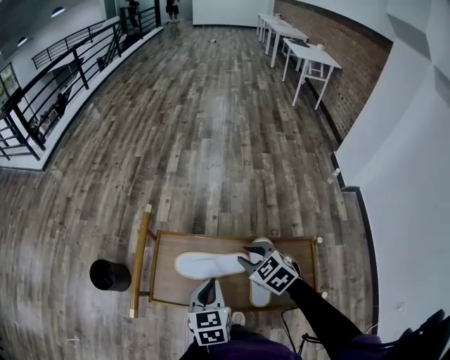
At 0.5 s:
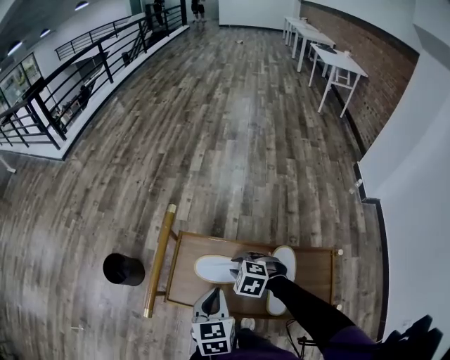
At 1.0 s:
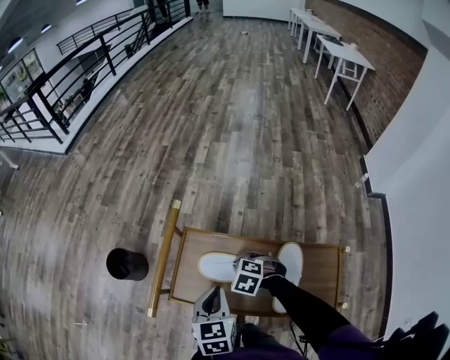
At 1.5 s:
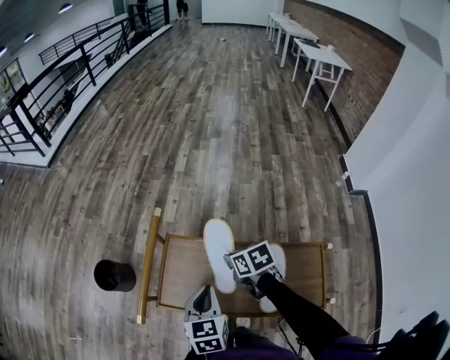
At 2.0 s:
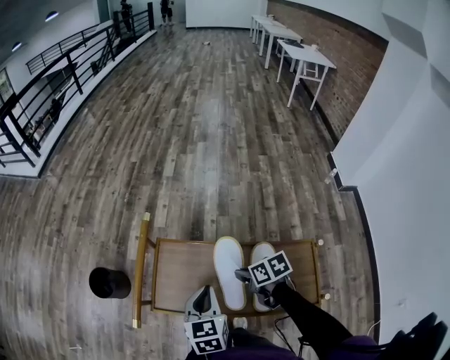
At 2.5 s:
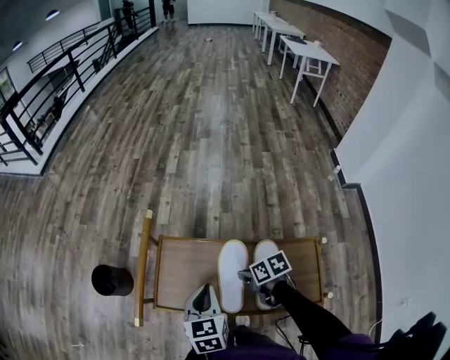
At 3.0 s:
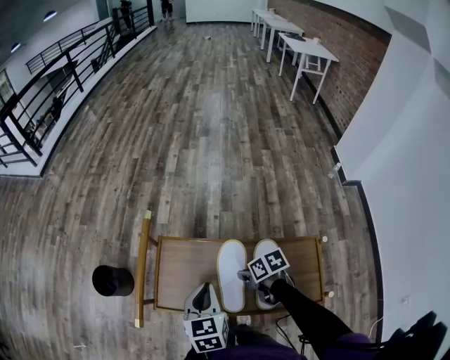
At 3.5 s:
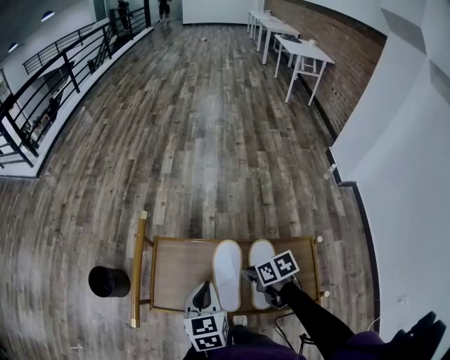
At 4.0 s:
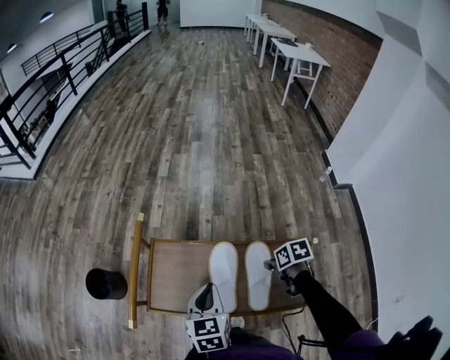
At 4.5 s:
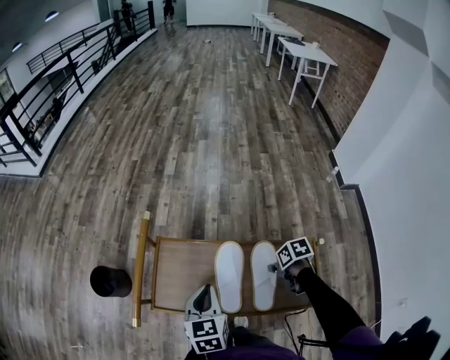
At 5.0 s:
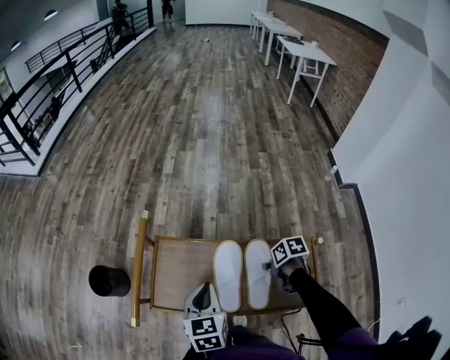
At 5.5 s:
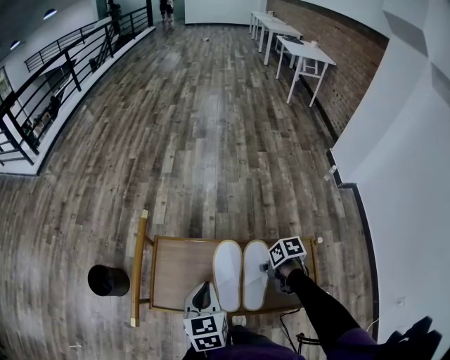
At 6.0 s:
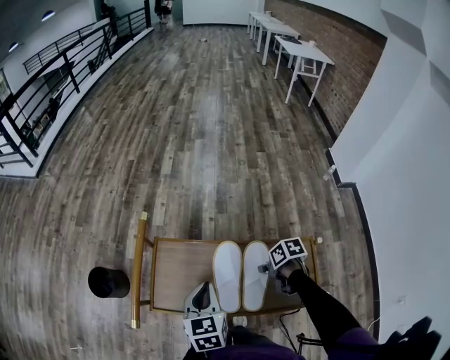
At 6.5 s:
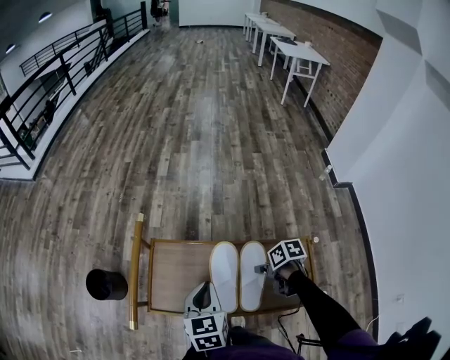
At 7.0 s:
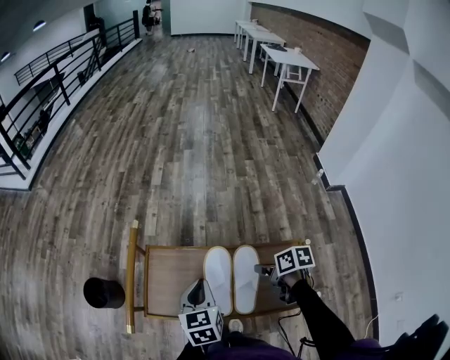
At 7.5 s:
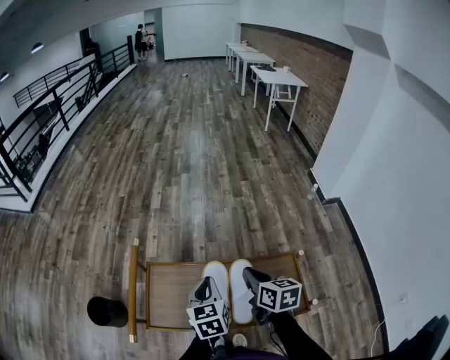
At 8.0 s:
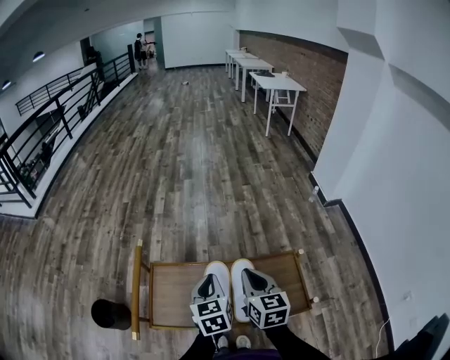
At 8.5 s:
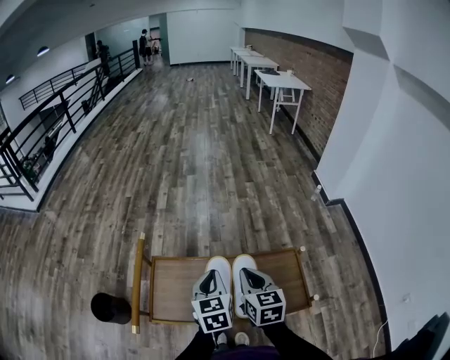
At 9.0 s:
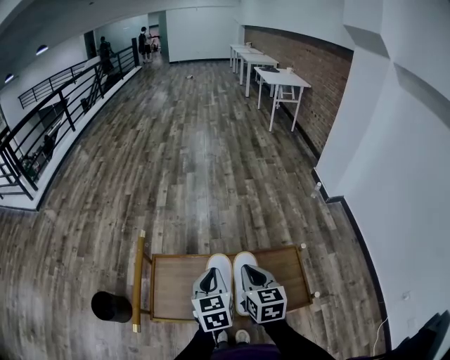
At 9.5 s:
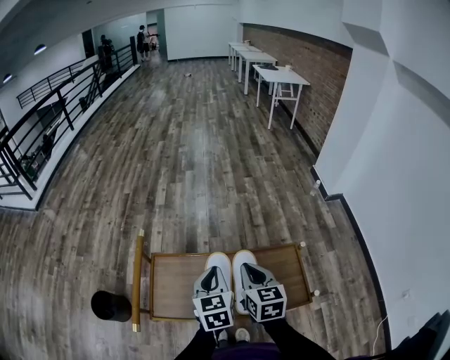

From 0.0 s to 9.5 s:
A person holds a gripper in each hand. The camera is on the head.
From 0.0 s to 2.0 s: The right gripper is displaced downward by about 5 cm, and twists some 50 degrees clockwise, seen from behind.
From 2.0 s to 4.0 s: The right gripper shifts about 15 cm to the right and backward, and changes its angle by approximately 20 degrees.
From 4.0 s to 5.5 s: The grippers make only small movements.
From 5.5 s to 7.5 s: The left gripper ends up some 5 cm from where it was; the right gripper moves upward, some 15 cm, and points its fingers some 30 degrees further upward.
From 7.5 s to 9.5 s: The right gripper turns by roughly 20 degrees.

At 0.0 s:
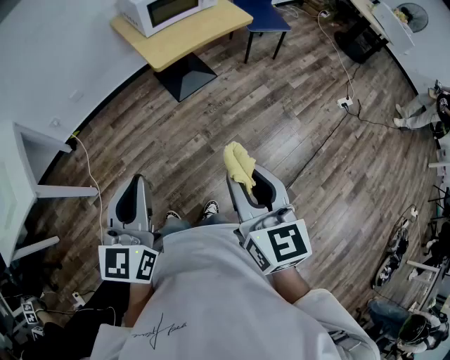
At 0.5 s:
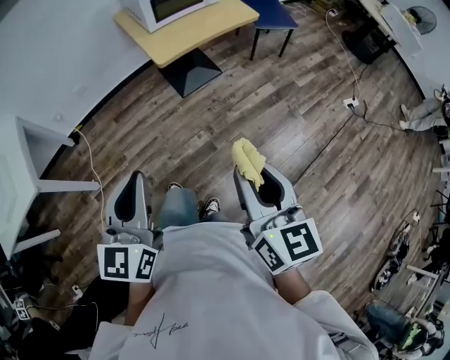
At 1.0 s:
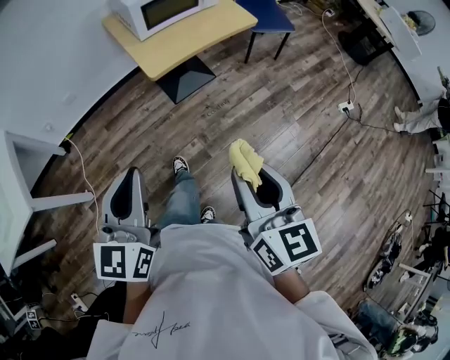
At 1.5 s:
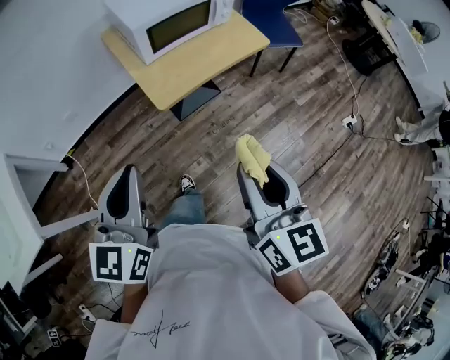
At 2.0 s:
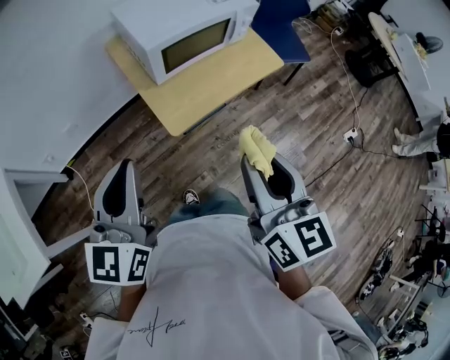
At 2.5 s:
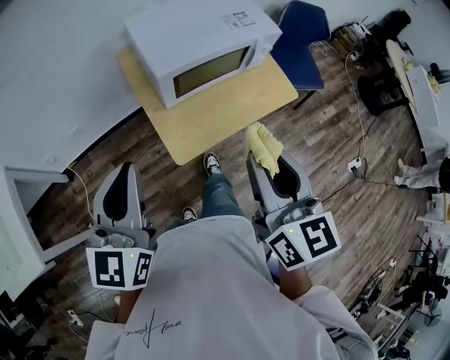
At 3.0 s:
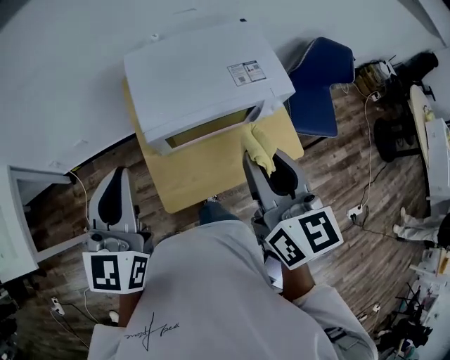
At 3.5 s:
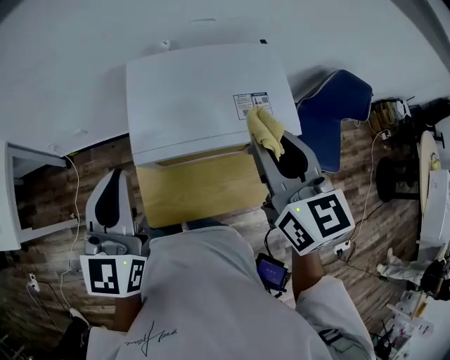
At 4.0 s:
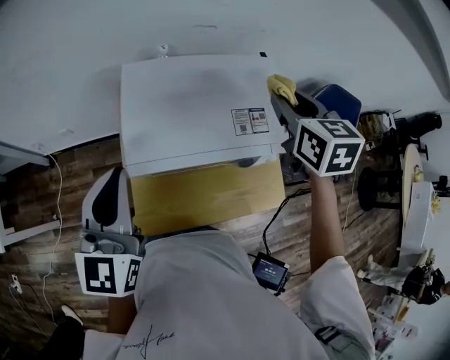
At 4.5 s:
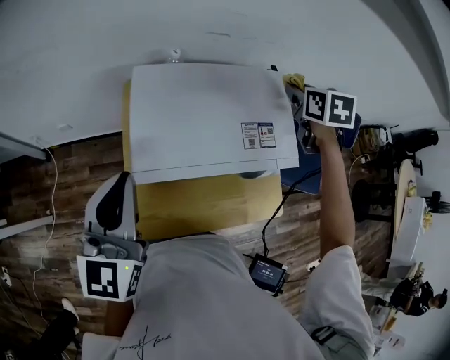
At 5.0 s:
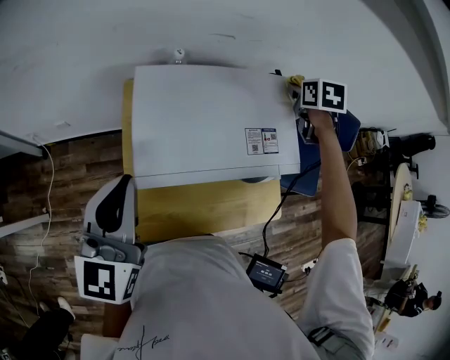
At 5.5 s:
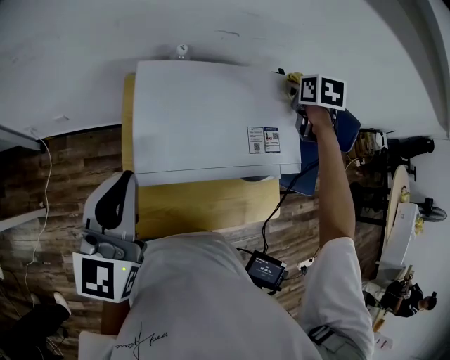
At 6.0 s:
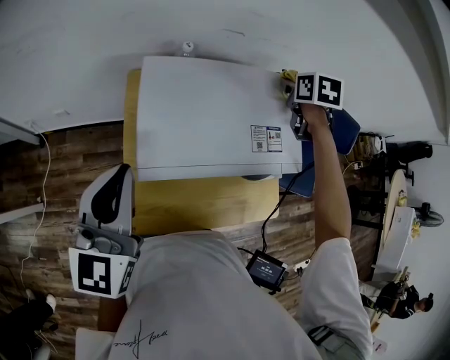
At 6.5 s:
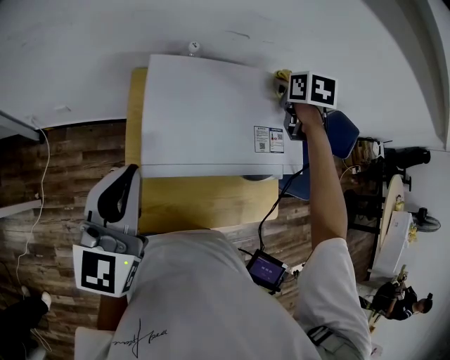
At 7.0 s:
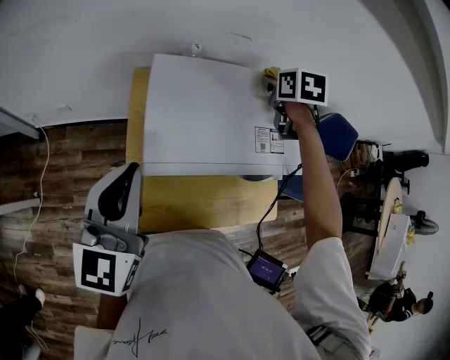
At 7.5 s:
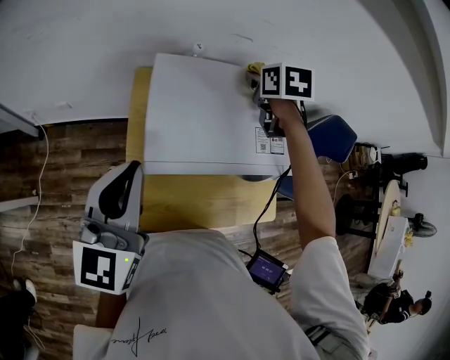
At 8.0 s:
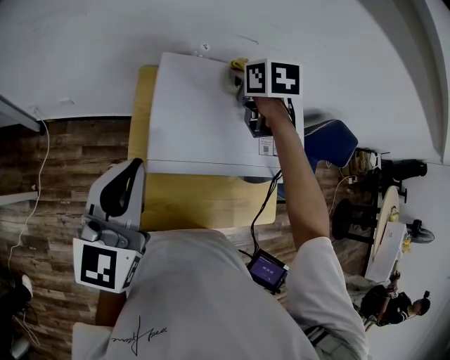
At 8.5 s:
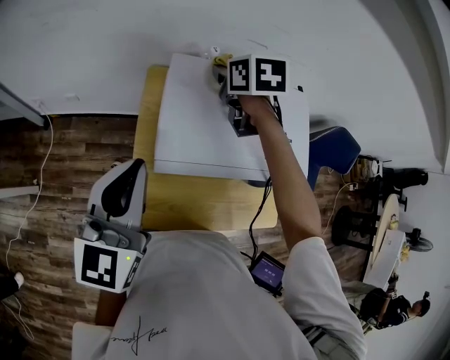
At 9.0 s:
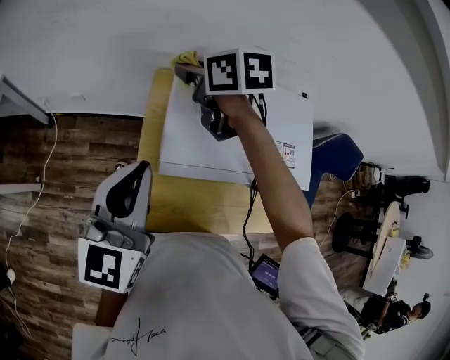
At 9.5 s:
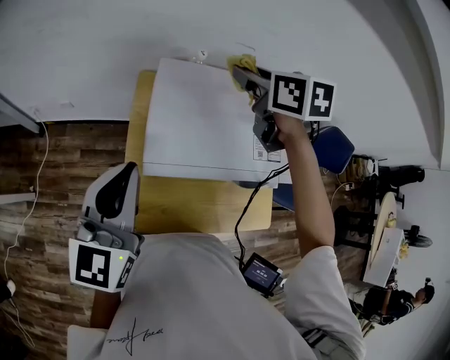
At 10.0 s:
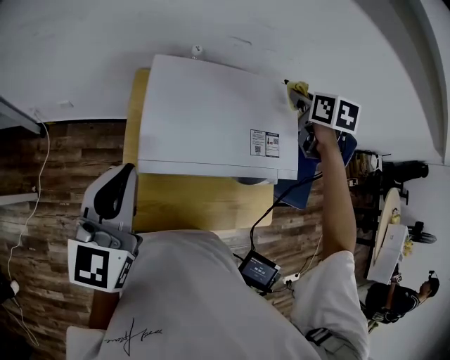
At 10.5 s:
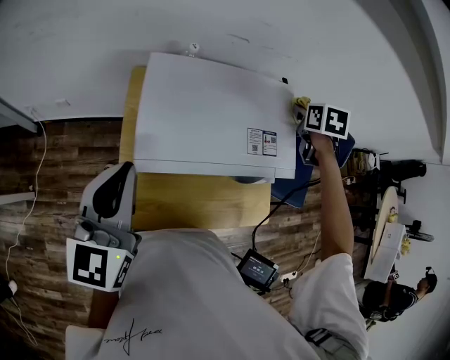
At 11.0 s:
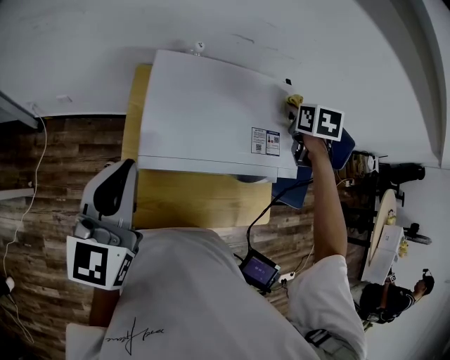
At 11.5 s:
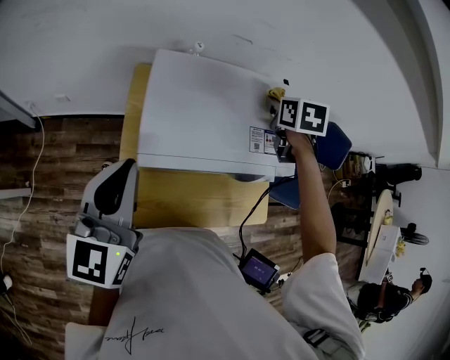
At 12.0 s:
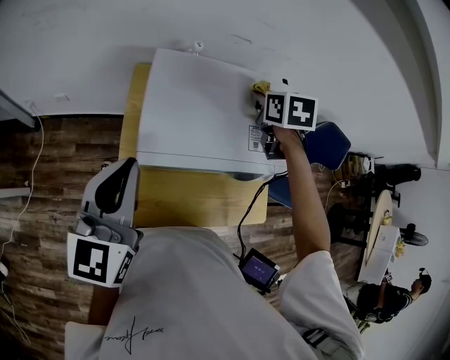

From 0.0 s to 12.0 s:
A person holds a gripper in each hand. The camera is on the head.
From 0.0 s to 2.0 s: The pair of grippers is taken forward, some 40 cm.
From 2.0 s to 4.0 s: The left gripper moves some 35 cm, and rotates approximately 30 degrees. The right gripper changes place by roughly 60 cm, and turns by about 40 degrees.
From 4.0 s to 6.0 s: The right gripper is displaced forward and downward by approximately 15 cm, and swivels some 20 degrees.
From 6.0 s to 8.0 s: The right gripper heads to the left, covering some 20 cm.
From 8.0 s to 10.0 s: The right gripper goes about 20 cm to the right.
From 10.0 s to 12.0 s: The right gripper is displaced to the left by roughly 10 cm.

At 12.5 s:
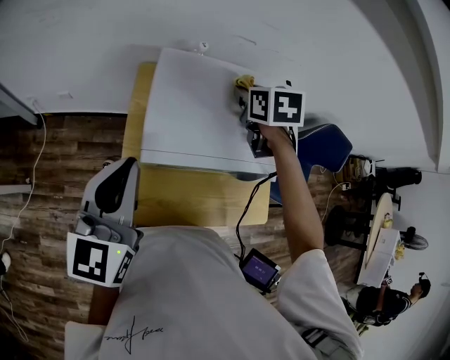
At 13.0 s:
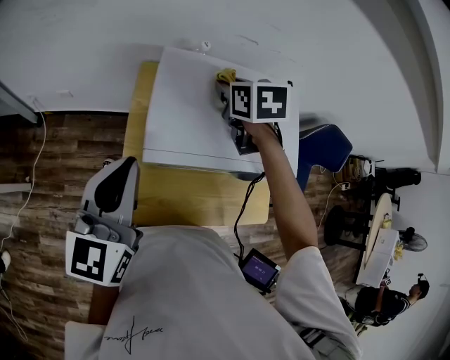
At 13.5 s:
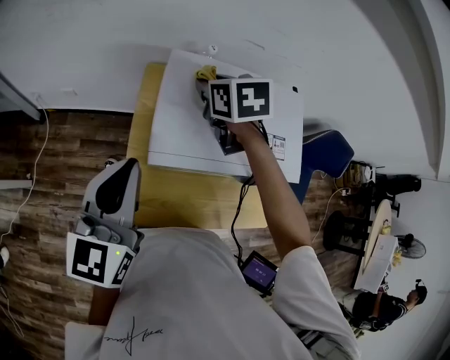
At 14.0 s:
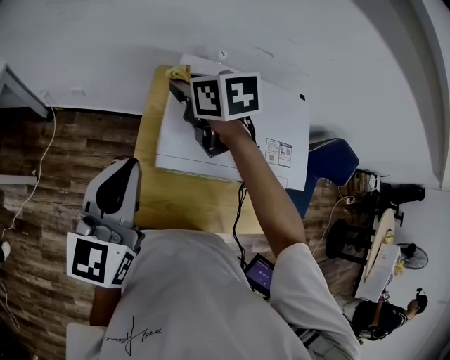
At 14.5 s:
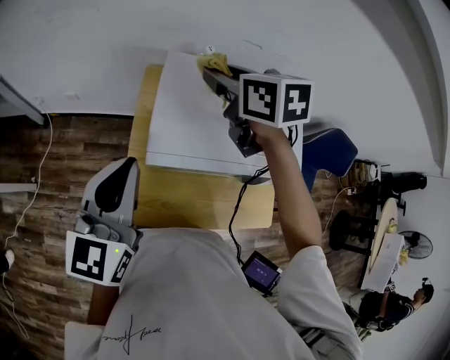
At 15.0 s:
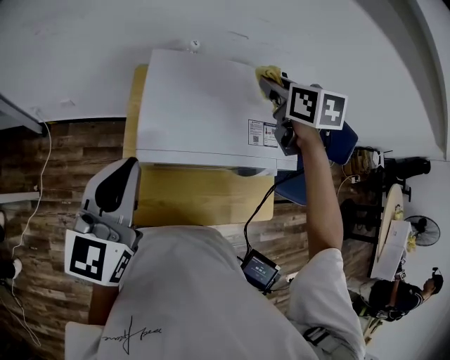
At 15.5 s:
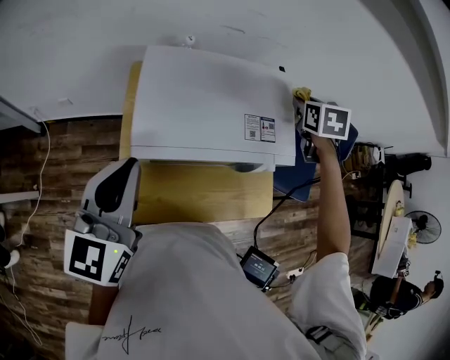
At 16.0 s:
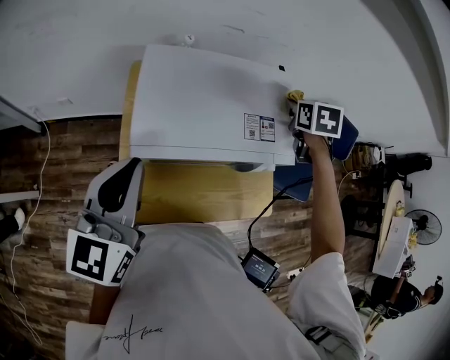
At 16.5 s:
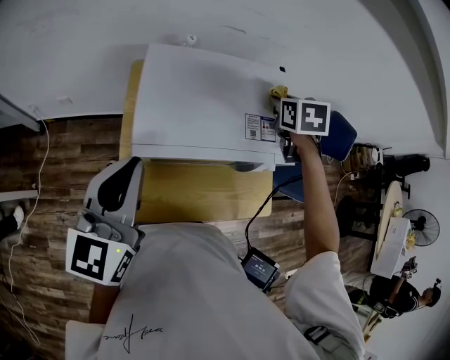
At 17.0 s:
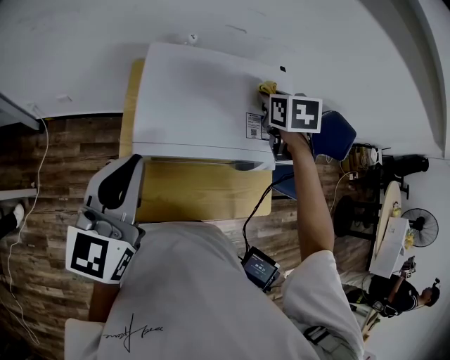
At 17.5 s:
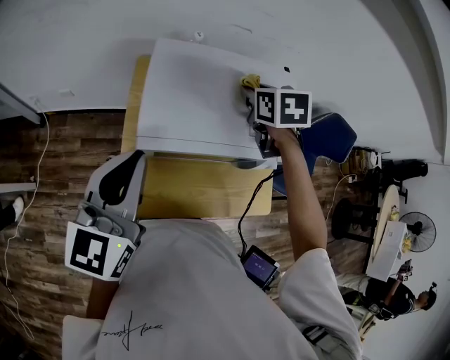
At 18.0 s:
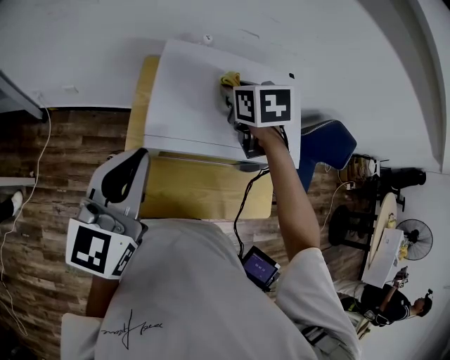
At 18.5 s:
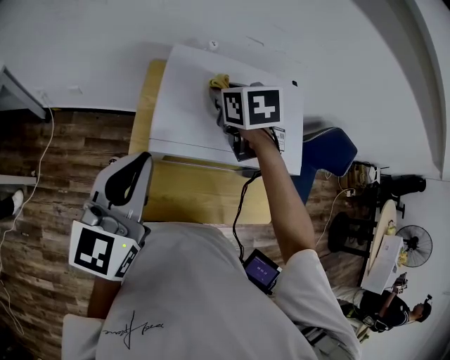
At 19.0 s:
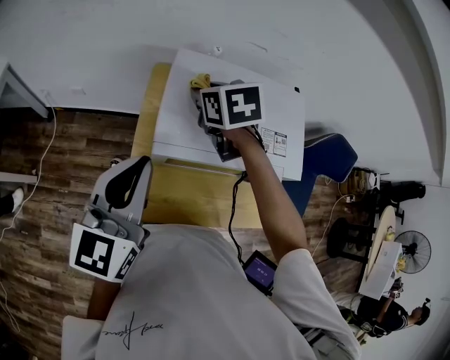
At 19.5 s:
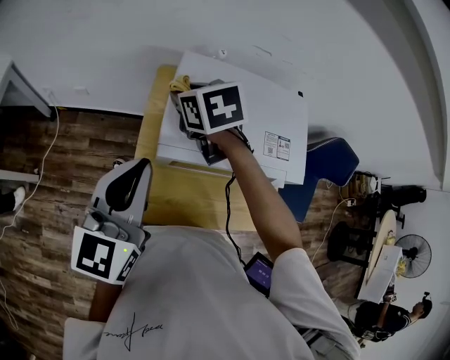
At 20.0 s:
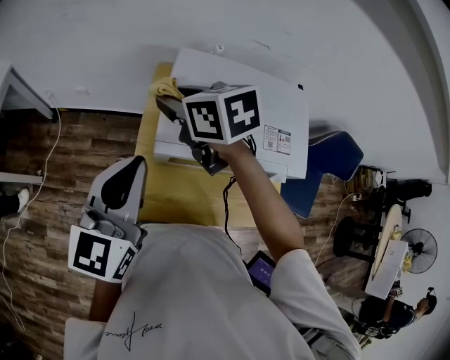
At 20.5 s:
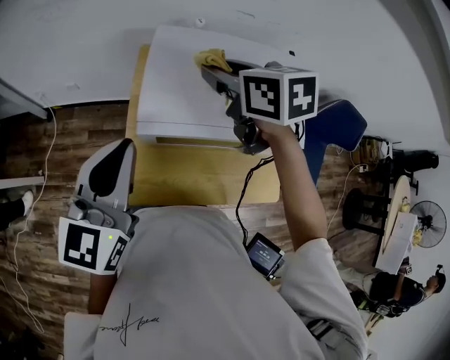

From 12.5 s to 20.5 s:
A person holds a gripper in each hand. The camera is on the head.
From 12.5 s to 14.5 s: The right gripper is displaced to the left and upward by some 15 cm, and turns by roughly 30 degrees.
From 14.5 s to 16.5 s: The right gripper ends up some 25 cm from where it was, and swivels some 40 degrees.
From 16.5 s to 18.5 s: The right gripper moves to the left, roughly 20 cm, and turns by some 20 degrees.
From 18.5 s to 20.5 s: The right gripper heads upward, covering roughly 5 cm, and travels to the left and back again, some 15 cm each way.
